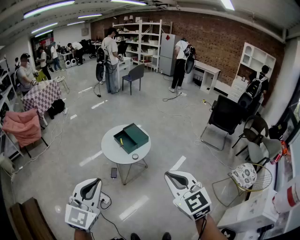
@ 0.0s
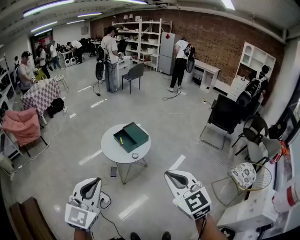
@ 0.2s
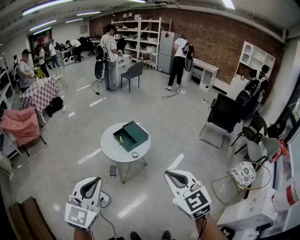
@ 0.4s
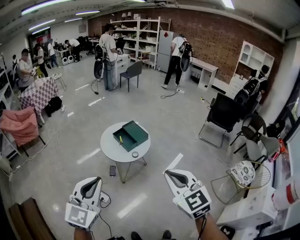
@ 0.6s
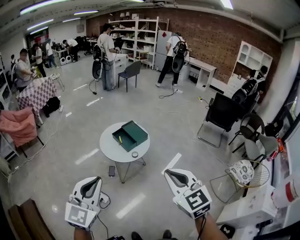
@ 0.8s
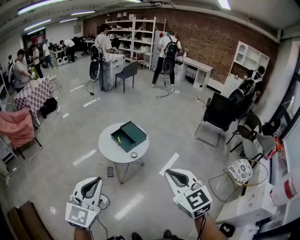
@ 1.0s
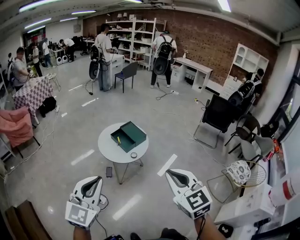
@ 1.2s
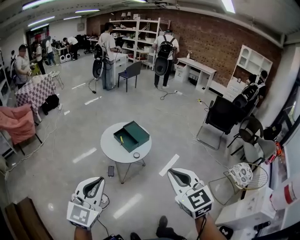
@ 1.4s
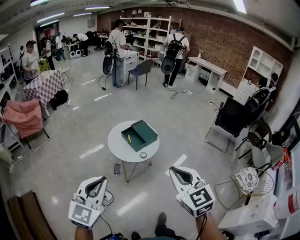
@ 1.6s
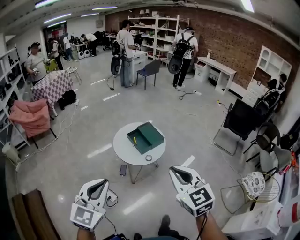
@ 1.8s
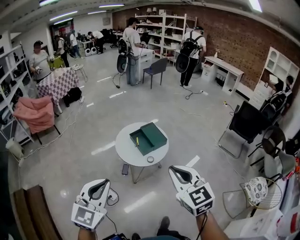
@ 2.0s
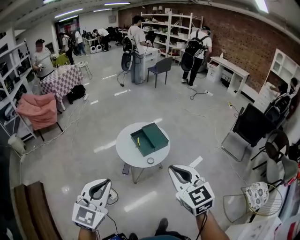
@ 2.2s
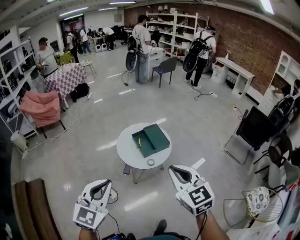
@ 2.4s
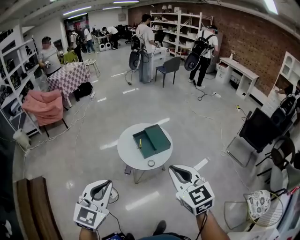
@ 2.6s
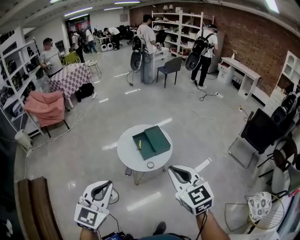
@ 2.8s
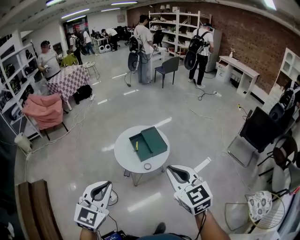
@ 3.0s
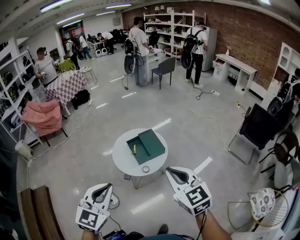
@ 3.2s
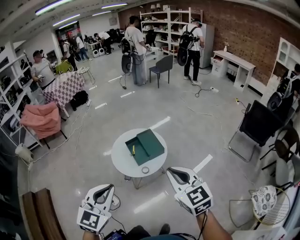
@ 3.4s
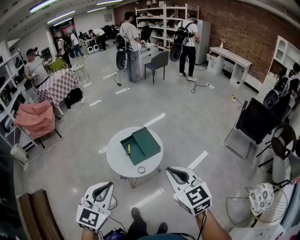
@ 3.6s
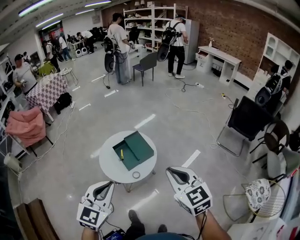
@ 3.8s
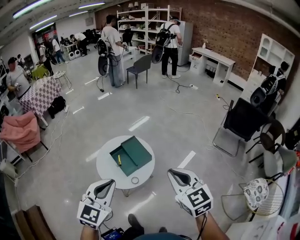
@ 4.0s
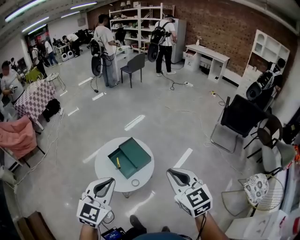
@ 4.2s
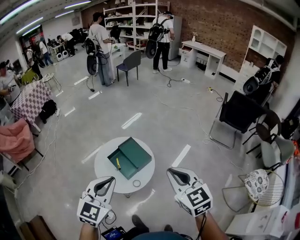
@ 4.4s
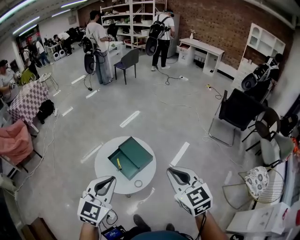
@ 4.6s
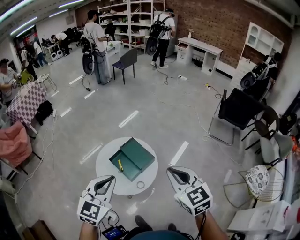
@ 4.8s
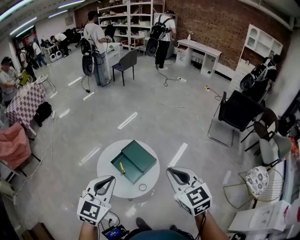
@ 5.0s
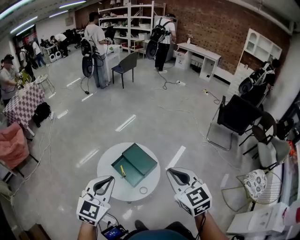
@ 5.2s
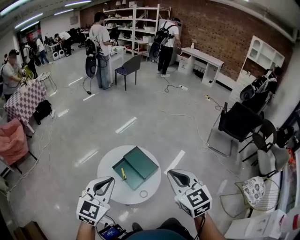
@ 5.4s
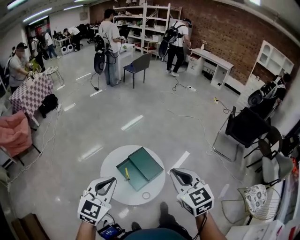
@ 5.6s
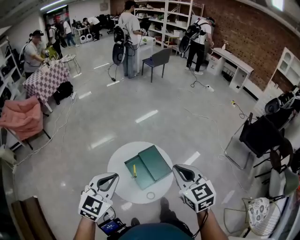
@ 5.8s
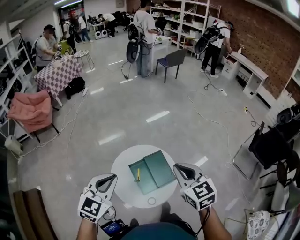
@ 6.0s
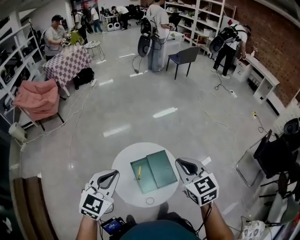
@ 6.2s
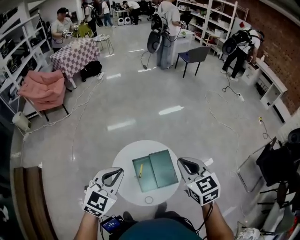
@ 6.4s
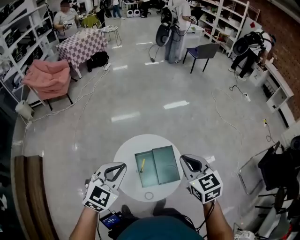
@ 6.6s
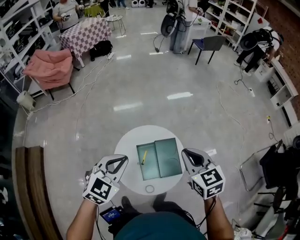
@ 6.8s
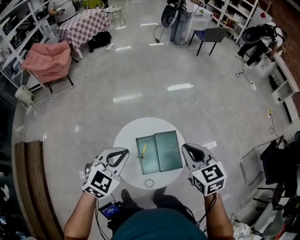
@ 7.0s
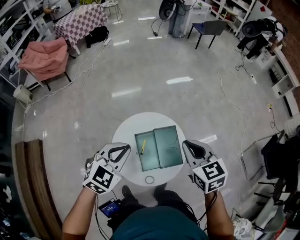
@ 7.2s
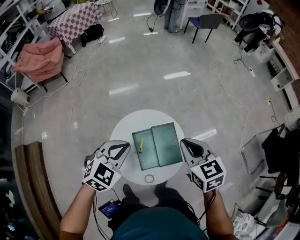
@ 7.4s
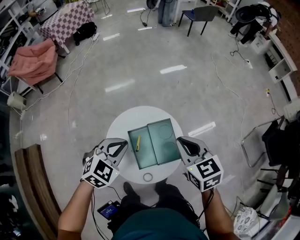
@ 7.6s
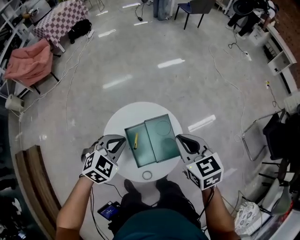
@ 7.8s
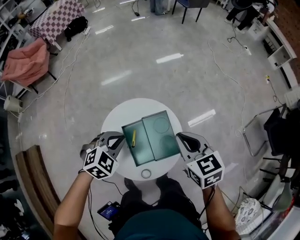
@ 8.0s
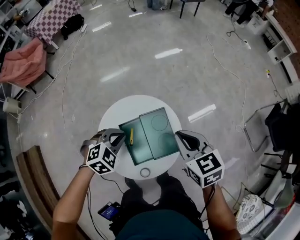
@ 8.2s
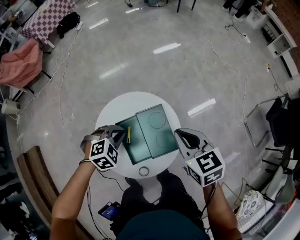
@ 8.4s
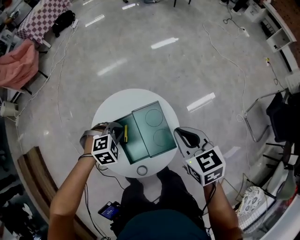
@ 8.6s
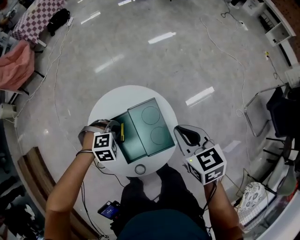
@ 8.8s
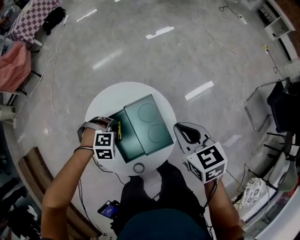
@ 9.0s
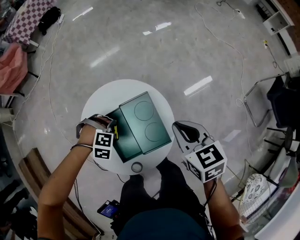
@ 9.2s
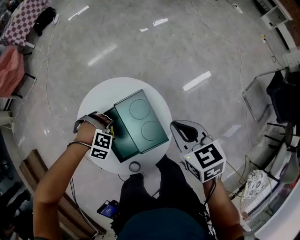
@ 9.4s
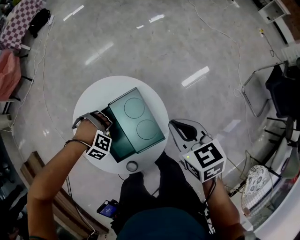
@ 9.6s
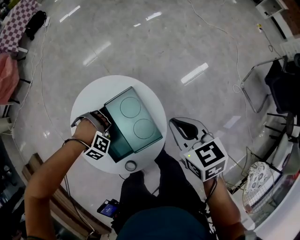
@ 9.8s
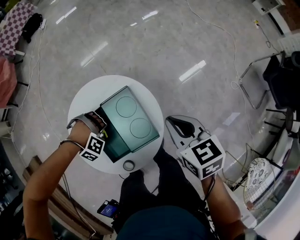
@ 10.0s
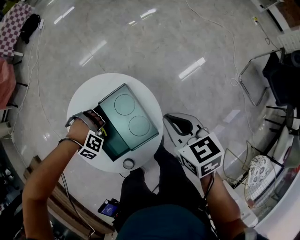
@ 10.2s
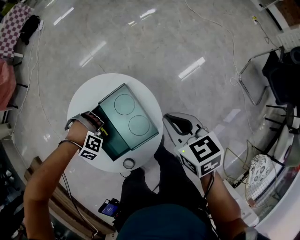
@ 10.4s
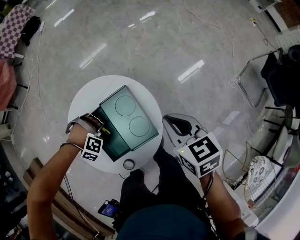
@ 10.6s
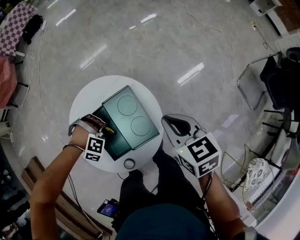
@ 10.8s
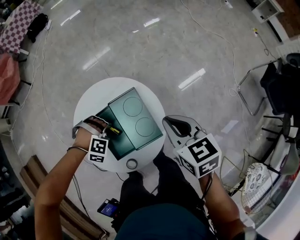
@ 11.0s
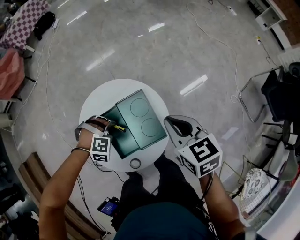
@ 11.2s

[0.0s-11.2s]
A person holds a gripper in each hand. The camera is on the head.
0.0s to 1.6s: The grippers both shift to the left and forward by roughly 10 cm.
1.6s to 3.2s: The right gripper heads forward and to the right, covering some 30 cm, while the left gripper heads to the right and forward, covering approximately 30 cm.
3.2s to 4.8s: The two grippers go about 30 cm forward. The left gripper turns by roughly 20 degrees. Meanwhile the right gripper changes its angle by approximately 20 degrees.
4.8s to 6.4s: The left gripper changes place by approximately 30 cm, and turns by about 30 degrees, while the right gripper changes place by about 40 cm, and swivels roughly 30 degrees.
6.4s to 8.0s: Both grippers travel together downward and forward, approximately 25 cm. The left gripper swivels about 30 degrees.
8.0s to 9.6s: The right gripper goes some 20 cm downward; the left gripper is displaced downward by roughly 30 cm, twists about 70 degrees clockwise, seen from behind, and opens up.
9.6s to 11.2s: The two grippers go roughly 5 cm upward. The left gripper swivels about 30 degrees.

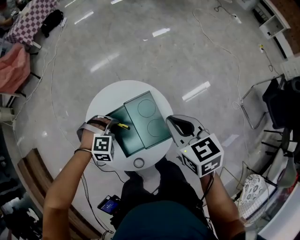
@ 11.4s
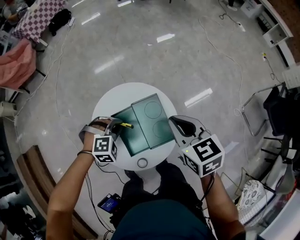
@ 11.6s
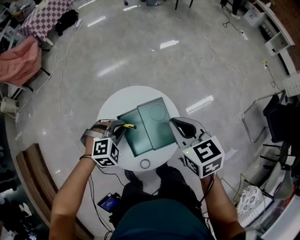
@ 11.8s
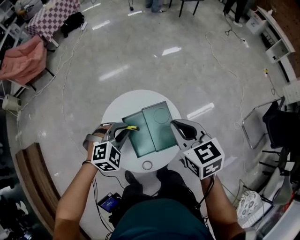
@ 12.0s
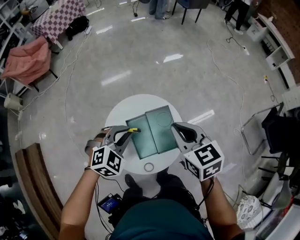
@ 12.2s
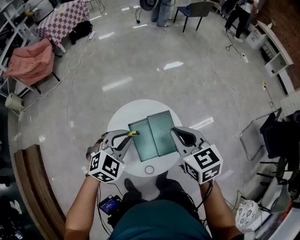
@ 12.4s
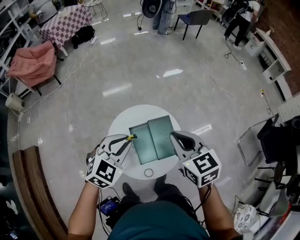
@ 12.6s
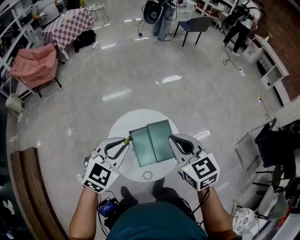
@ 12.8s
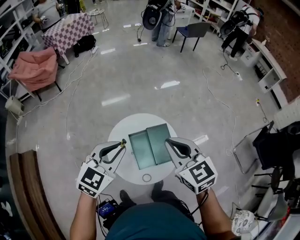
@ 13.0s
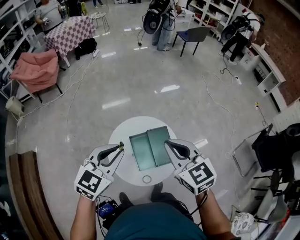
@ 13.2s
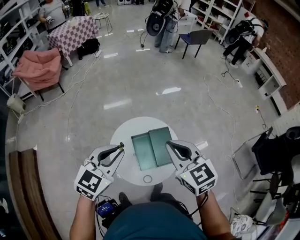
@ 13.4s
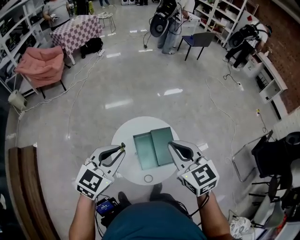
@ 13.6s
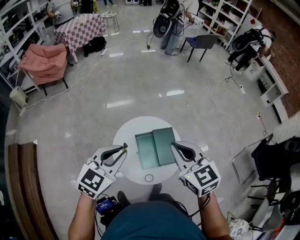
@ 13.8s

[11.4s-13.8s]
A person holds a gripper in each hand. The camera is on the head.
11.4s to 12.6s: The right gripper goes about 25 cm upward, to the left and backward. The left gripper shifts roughly 35 cm upward, and tips its fingers upward by some 40 degrees.
12.6s to 13.8s: The grippers both shift backward, upward and to the left by about 15 cm.

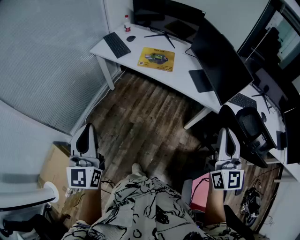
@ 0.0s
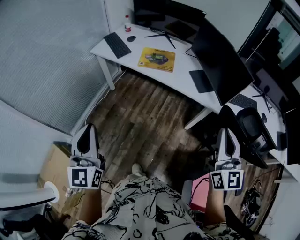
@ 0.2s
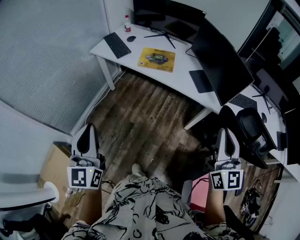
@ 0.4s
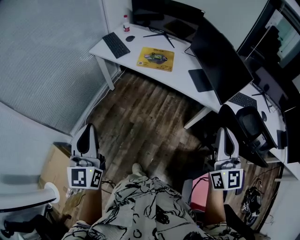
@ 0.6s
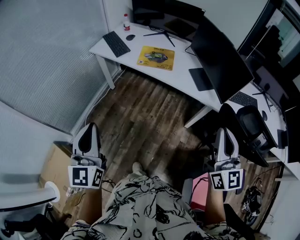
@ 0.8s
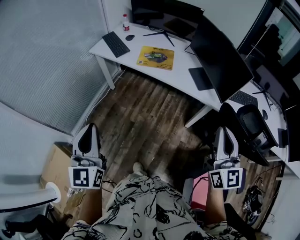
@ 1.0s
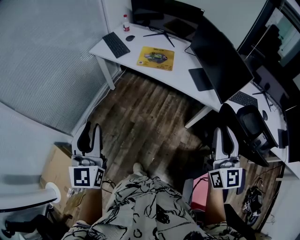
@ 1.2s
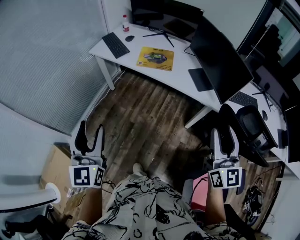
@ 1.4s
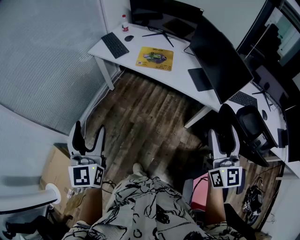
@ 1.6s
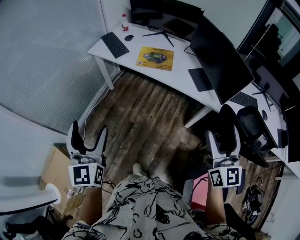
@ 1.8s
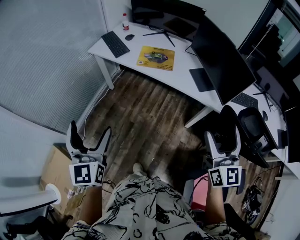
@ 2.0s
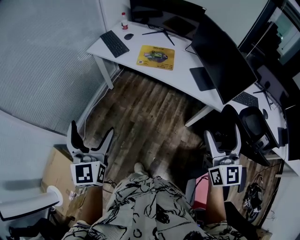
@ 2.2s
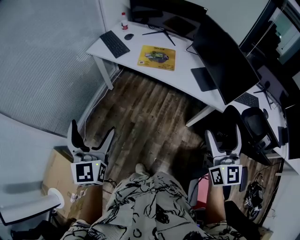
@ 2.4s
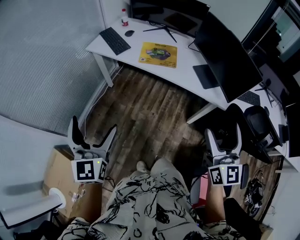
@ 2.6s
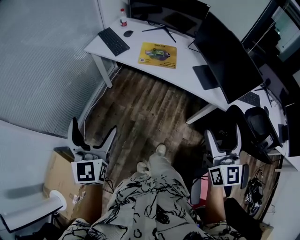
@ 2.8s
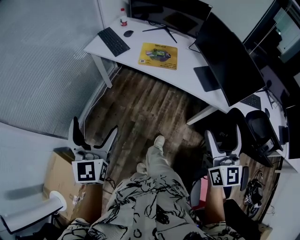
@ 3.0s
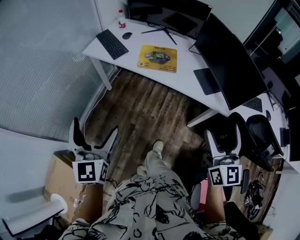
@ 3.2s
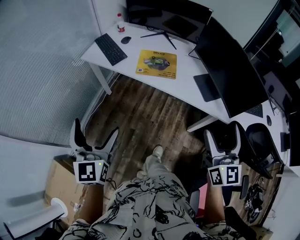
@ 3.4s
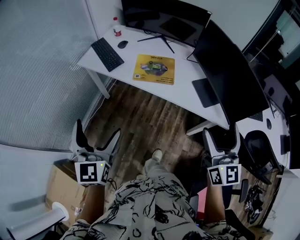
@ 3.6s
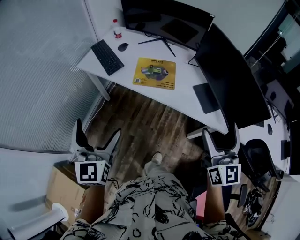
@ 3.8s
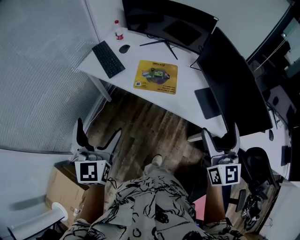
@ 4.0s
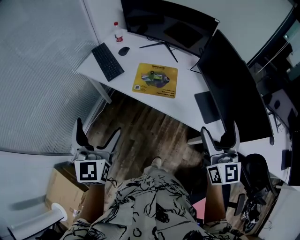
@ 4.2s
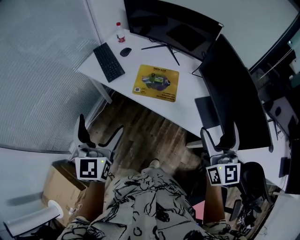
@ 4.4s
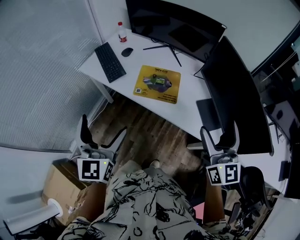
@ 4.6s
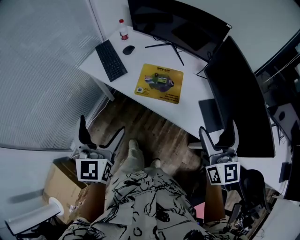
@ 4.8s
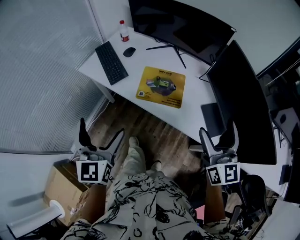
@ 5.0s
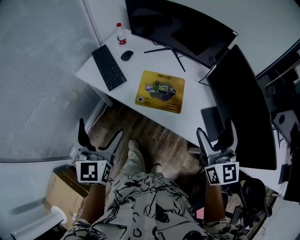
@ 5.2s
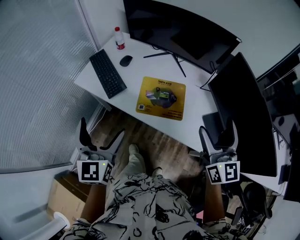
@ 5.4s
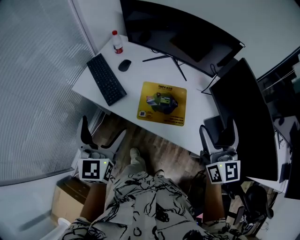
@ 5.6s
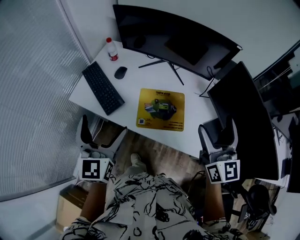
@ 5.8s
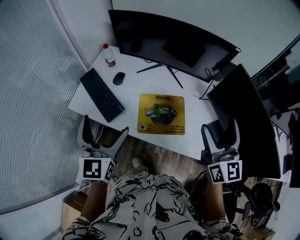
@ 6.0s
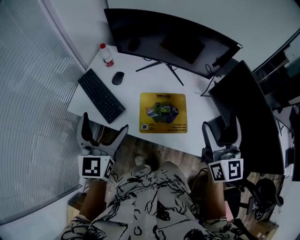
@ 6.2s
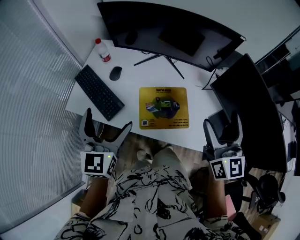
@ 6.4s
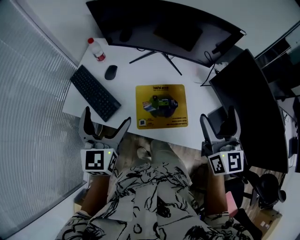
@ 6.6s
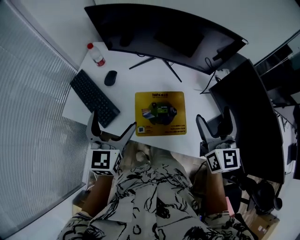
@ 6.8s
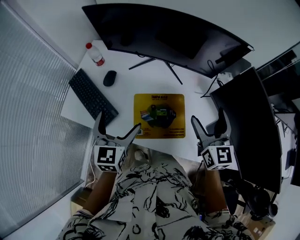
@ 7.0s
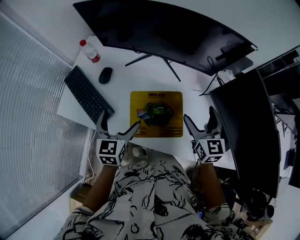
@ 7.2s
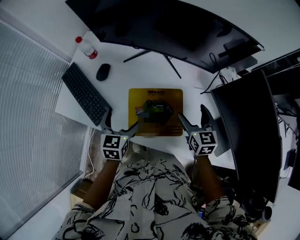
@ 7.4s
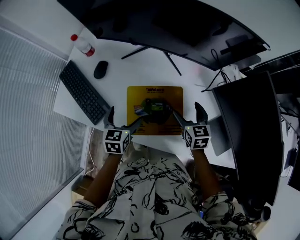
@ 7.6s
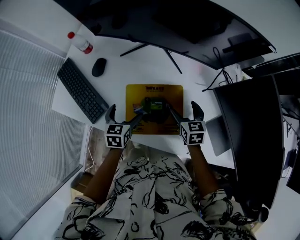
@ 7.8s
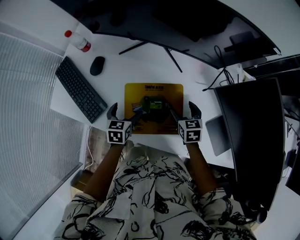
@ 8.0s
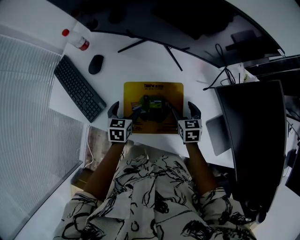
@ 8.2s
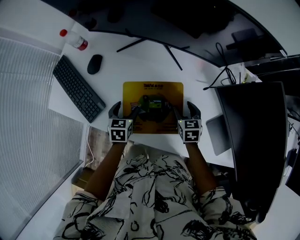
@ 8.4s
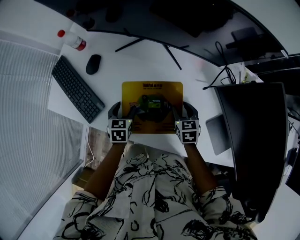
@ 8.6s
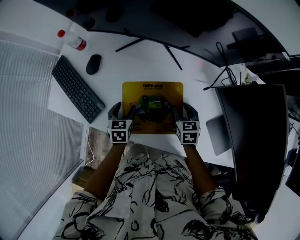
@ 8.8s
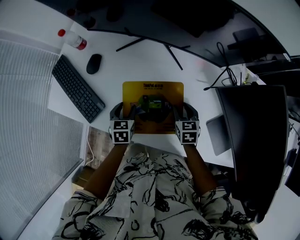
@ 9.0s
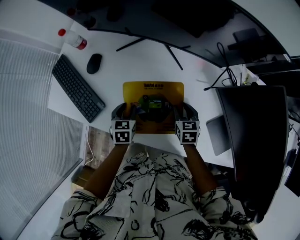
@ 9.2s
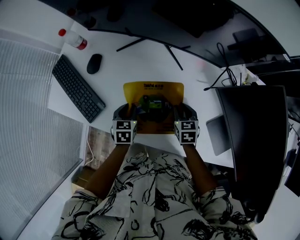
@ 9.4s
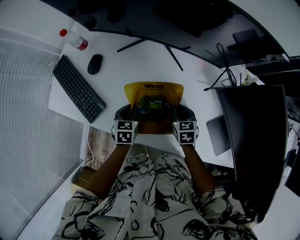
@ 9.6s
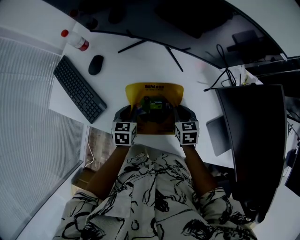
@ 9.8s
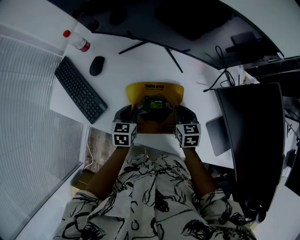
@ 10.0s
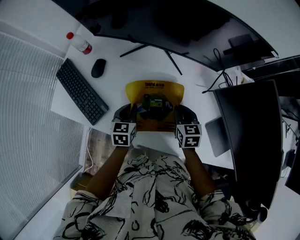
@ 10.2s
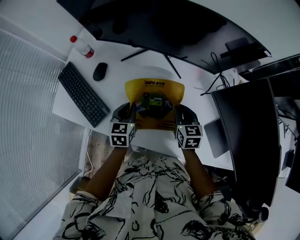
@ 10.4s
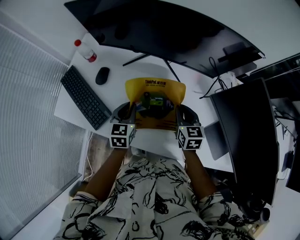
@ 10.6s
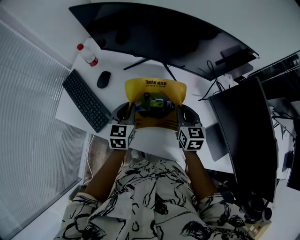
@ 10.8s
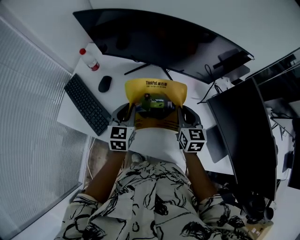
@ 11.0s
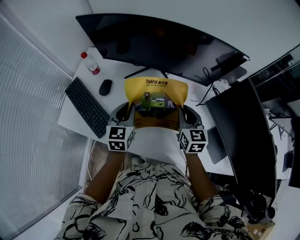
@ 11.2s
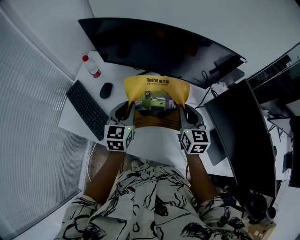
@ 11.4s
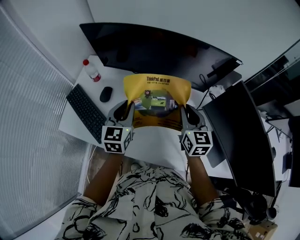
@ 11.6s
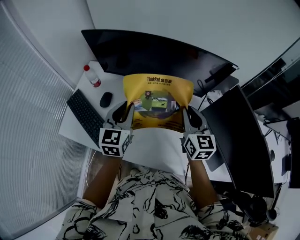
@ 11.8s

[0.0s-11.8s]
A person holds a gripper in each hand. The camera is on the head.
0.0s to 1.4s: The right gripper opens up. Meanwhile the left gripper opens up.
1.4s to 3.0s: The left gripper heads forward, covering approximately 10 cm, and opens up; the right gripper heads forward and to the left, covering some 10 cm, and opens up.
3.0s to 4.4s: Both grippers move forward, roughly 25 cm.
4.4s to 6.0s: The two grippers go some 25 cm forward.
6.0s to 7.4s: The two grippers go about 30 cm downward and forward. The left gripper turns by roughly 30 degrees, while the right gripper tips its fingers downward by some 30 degrees.
7.4s to 8.8s: Both grippers travel together downward, some 15 cm. The left gripper closes its fingers, while the right gripper changes its angle by about 20 degrees, and closes up.
8.8s to 10.4s: The two grippers go about 10 cm upward.
10.4s to 11.8s: The two grippers go roughly 20 cm upward. The right gripper turns by about 30 degrees. The left gripper changes its angle by approximately 30 degrees.
